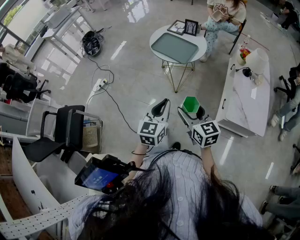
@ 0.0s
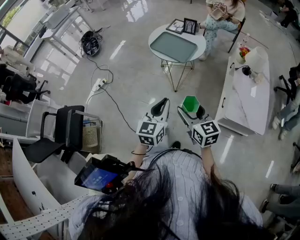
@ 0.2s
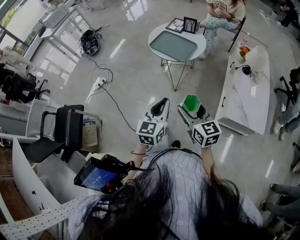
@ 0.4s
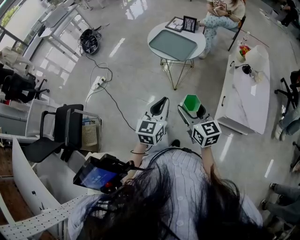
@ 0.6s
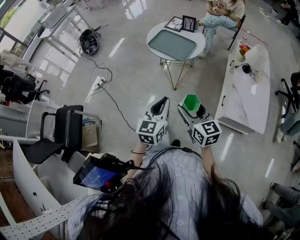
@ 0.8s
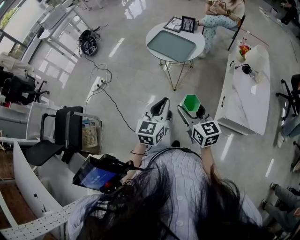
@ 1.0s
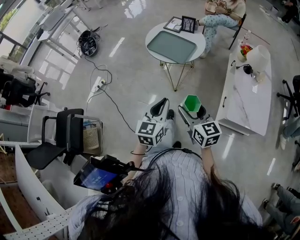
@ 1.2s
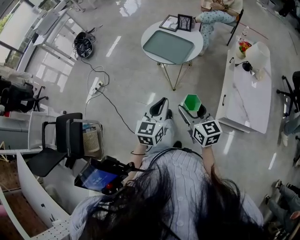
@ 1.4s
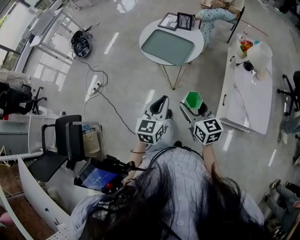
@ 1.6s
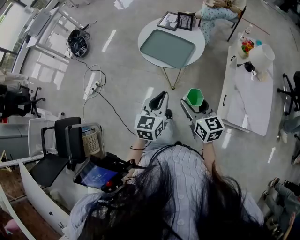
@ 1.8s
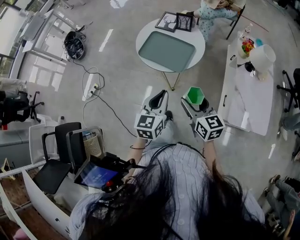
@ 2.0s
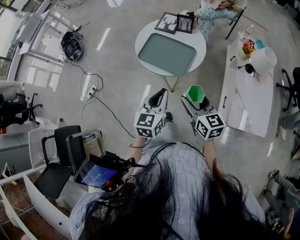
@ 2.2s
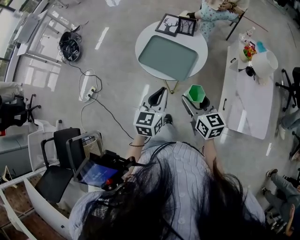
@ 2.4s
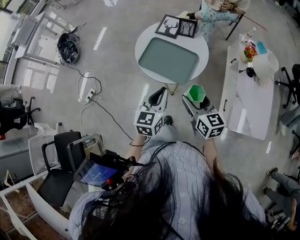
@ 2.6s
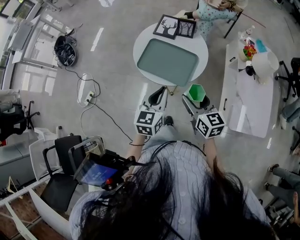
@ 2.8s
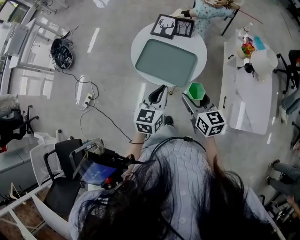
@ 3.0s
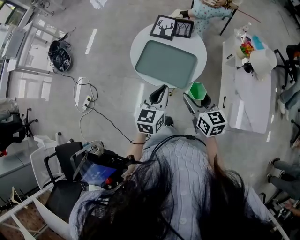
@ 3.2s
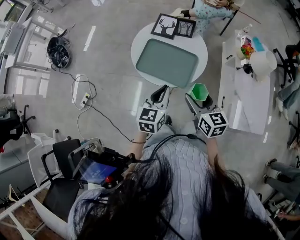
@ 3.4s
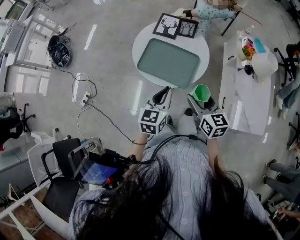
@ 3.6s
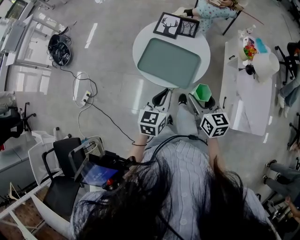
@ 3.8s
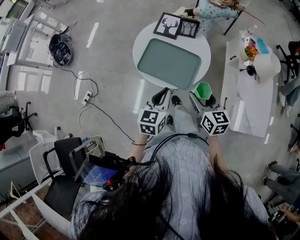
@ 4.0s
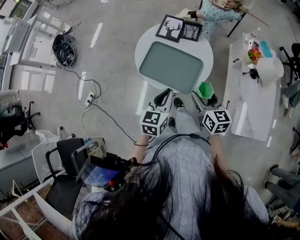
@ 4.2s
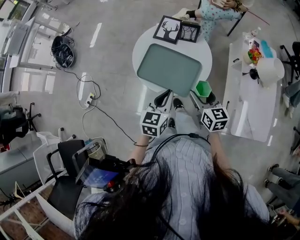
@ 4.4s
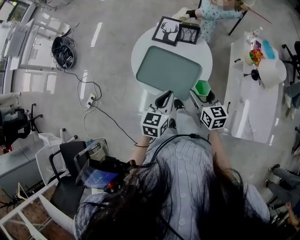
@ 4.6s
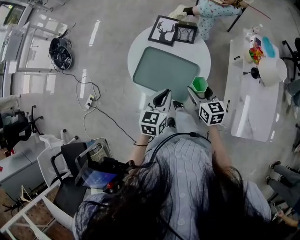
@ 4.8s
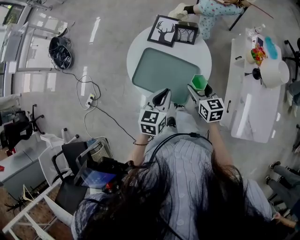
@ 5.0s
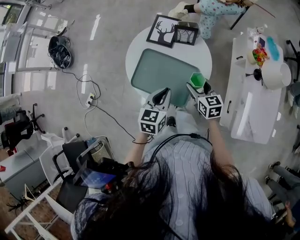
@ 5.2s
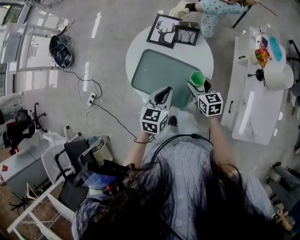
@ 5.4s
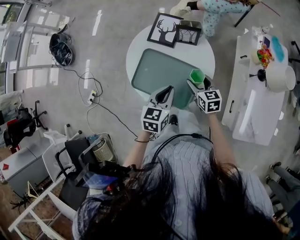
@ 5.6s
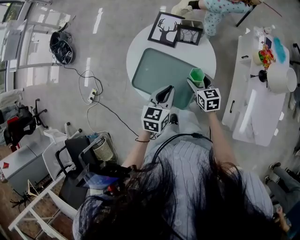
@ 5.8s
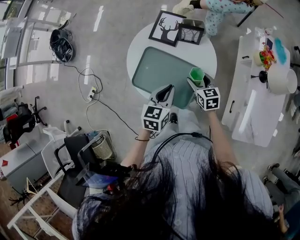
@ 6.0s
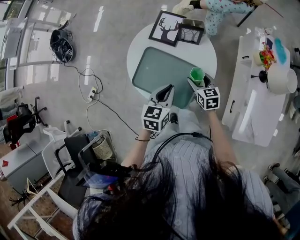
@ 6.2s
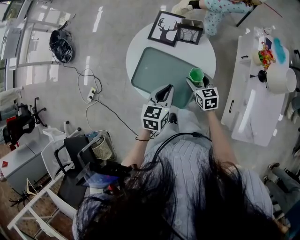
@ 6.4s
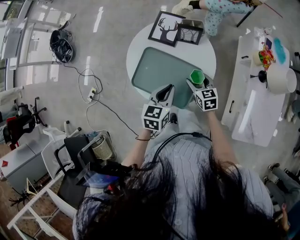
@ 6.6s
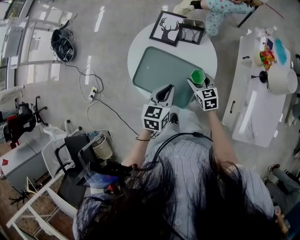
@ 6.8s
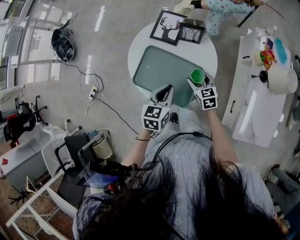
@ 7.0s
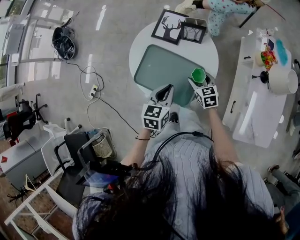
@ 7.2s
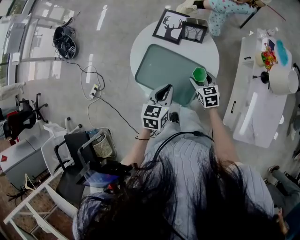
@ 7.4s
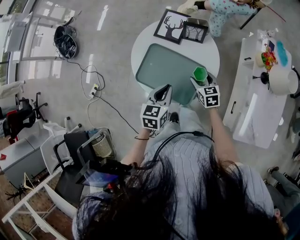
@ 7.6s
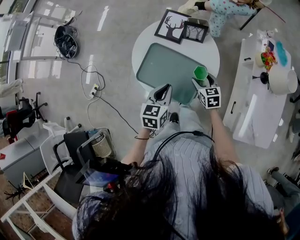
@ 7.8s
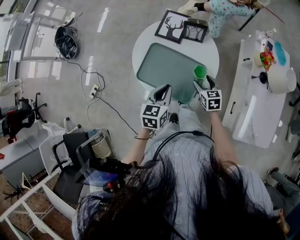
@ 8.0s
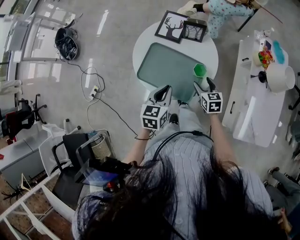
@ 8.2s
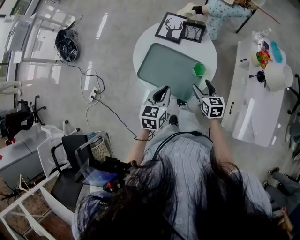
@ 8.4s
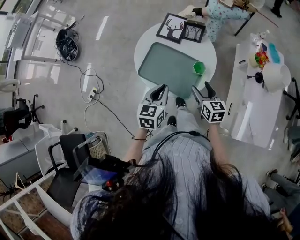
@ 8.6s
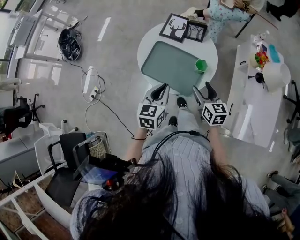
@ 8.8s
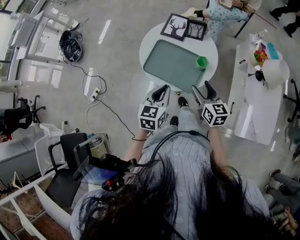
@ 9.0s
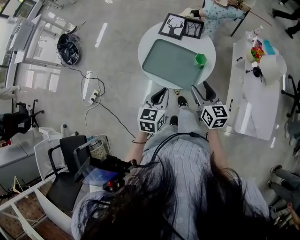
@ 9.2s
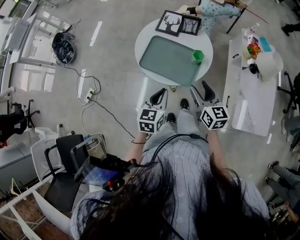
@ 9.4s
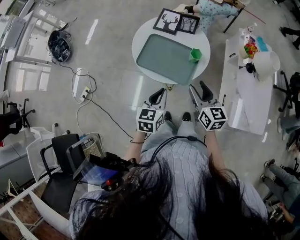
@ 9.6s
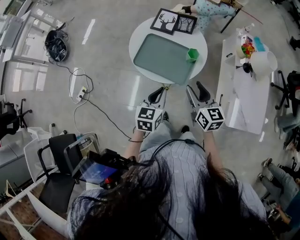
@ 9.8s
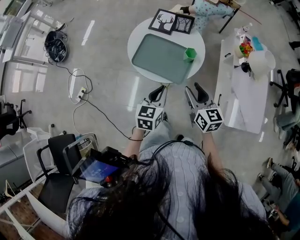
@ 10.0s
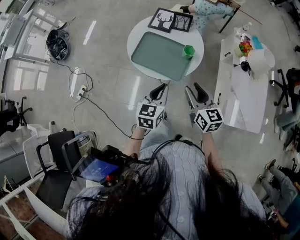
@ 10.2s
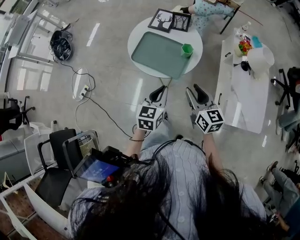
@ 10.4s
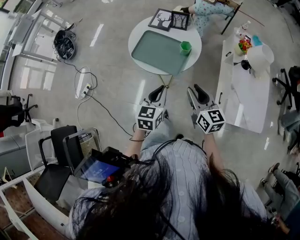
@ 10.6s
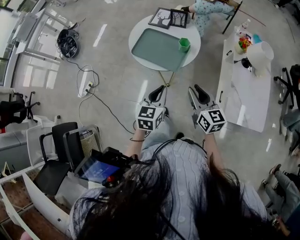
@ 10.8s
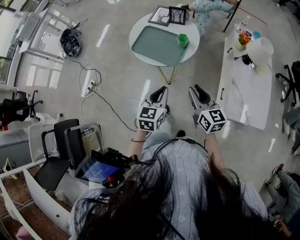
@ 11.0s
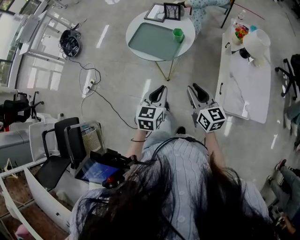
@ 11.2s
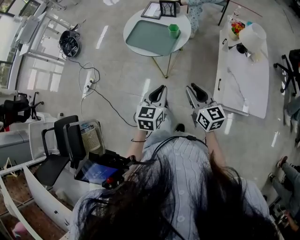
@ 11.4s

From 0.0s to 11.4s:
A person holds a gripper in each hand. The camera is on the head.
From 0.0s to 1.4s: Both grippers move forward, approximately 5 cm.
From 1.4s to 2.8s: The two grippers go approximately 25 cm forward.
From 2.8s to 4.2s: The left gripper moves roughly 5 cm. The right gripper shifts about 5 cm forward.
From 4.2s to 5.6s: The right gripper is displaced forward and downward by approximately 20 cm, while the left gripper moves forward and downward, approximately 15 cm.
From 5.6s to 7.2s: The grippers make only small movements.
From 7.2s to 8.6s: The left gripper heads backward, covering roughly 5 cm. The right gripper goes some 15 cm upward and backward.
From 8.6s to 10.0s: The left gripper travels backward by some 10 cm. Meanwhile the right gripper is displaced backward and upward by roughly 15 cm.
From 10.0s to 11.4s: The two grippers go about 20 cm backward and to the right.

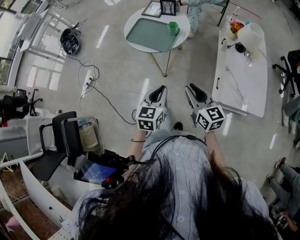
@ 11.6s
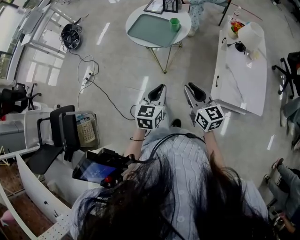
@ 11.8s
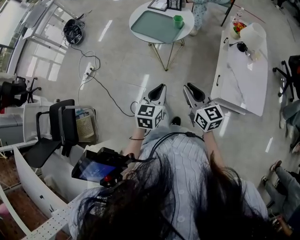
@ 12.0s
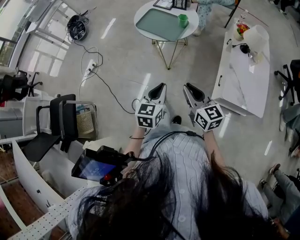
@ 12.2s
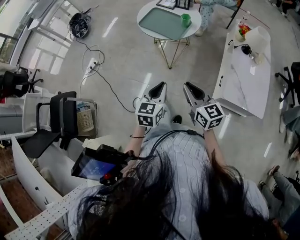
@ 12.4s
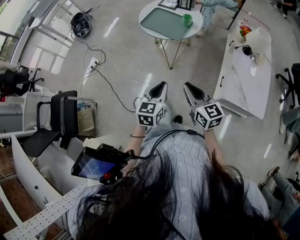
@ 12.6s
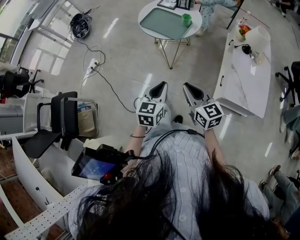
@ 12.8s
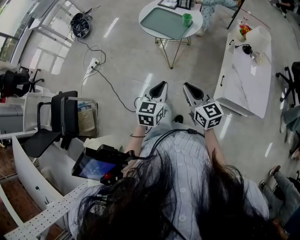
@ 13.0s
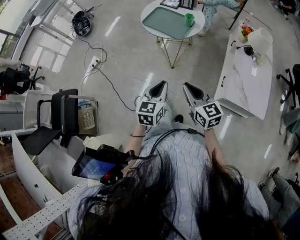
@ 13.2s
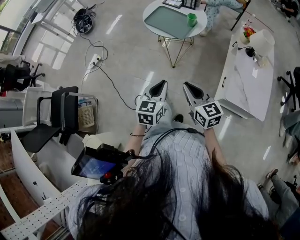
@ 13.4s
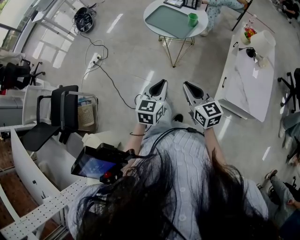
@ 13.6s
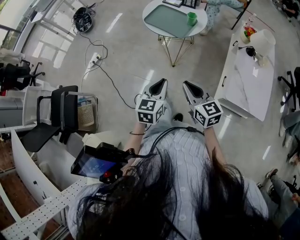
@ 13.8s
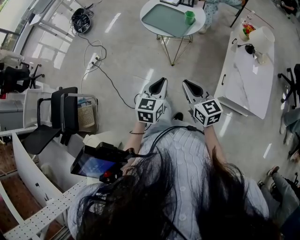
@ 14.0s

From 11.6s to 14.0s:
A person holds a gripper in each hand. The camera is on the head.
From 11.6s to 12.8s: The right gripper is displaced backward and to the left by about 10 cm, while the left gripper shifts some 10 cm backward.
From 12.8s to 14.0s: The grippers move only a little.

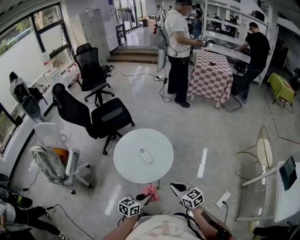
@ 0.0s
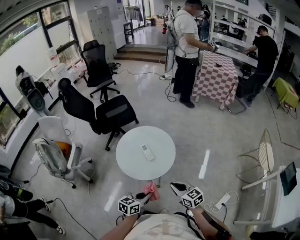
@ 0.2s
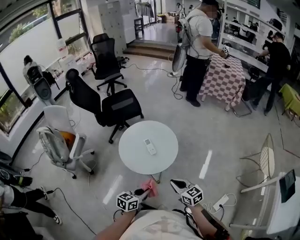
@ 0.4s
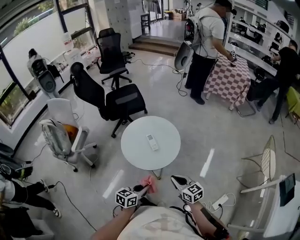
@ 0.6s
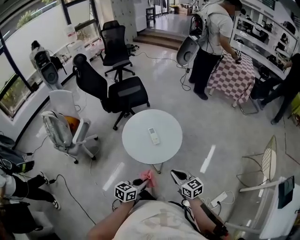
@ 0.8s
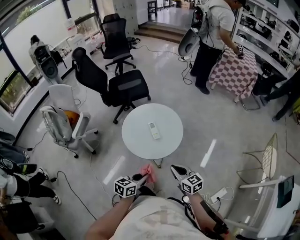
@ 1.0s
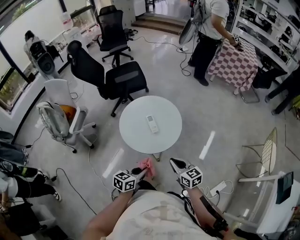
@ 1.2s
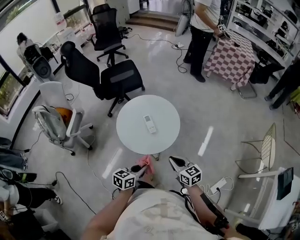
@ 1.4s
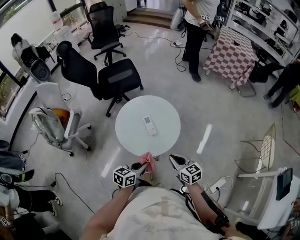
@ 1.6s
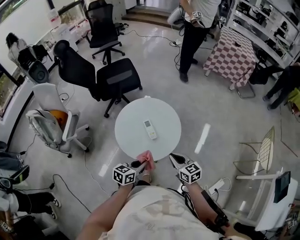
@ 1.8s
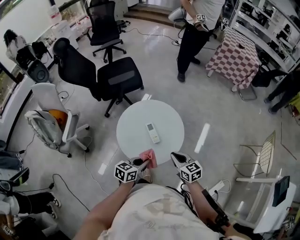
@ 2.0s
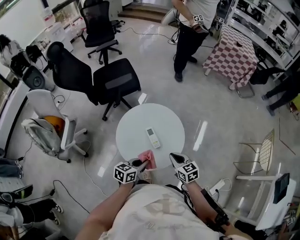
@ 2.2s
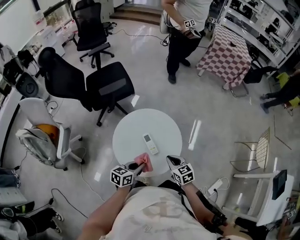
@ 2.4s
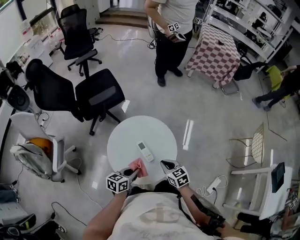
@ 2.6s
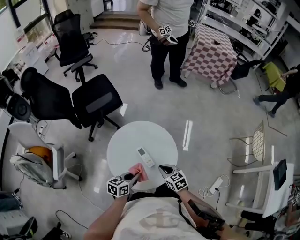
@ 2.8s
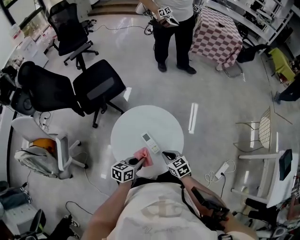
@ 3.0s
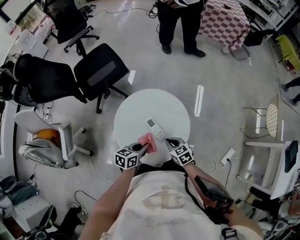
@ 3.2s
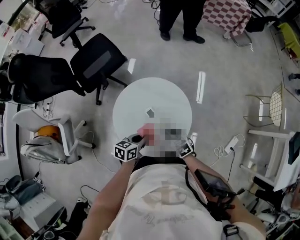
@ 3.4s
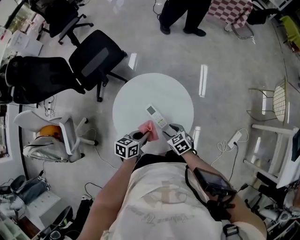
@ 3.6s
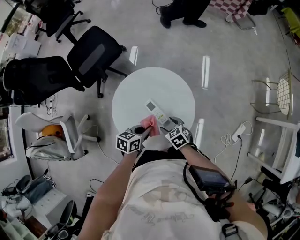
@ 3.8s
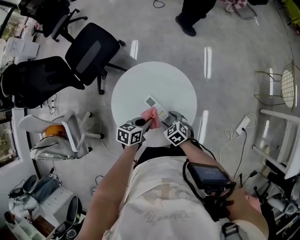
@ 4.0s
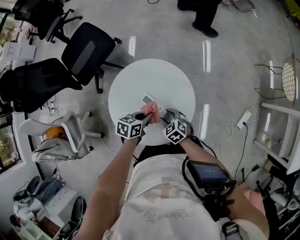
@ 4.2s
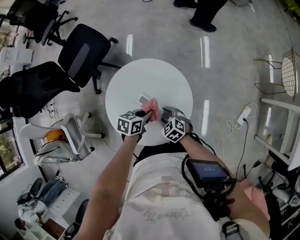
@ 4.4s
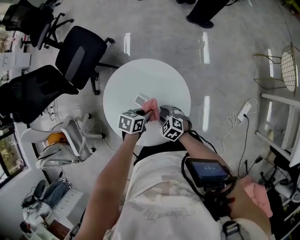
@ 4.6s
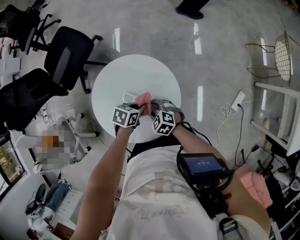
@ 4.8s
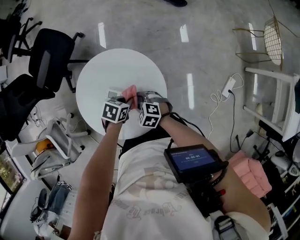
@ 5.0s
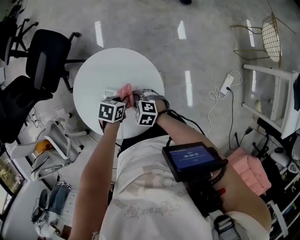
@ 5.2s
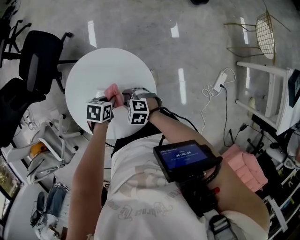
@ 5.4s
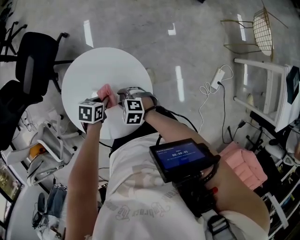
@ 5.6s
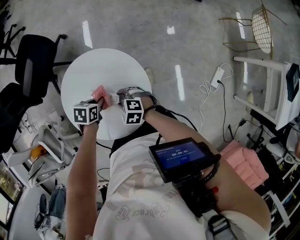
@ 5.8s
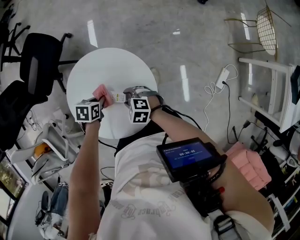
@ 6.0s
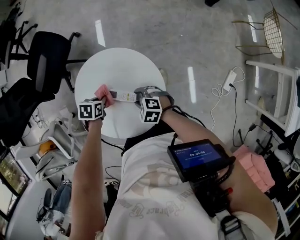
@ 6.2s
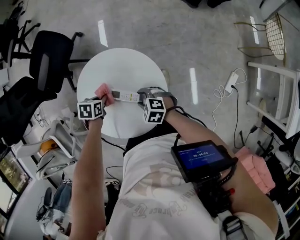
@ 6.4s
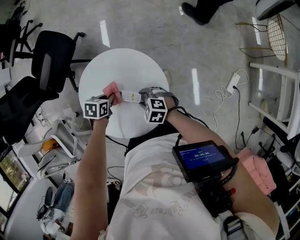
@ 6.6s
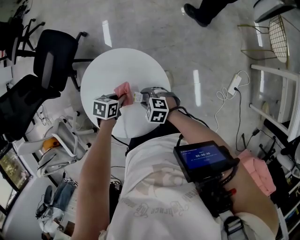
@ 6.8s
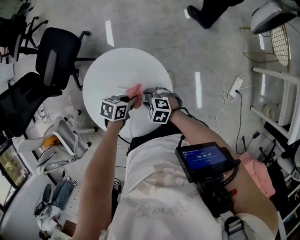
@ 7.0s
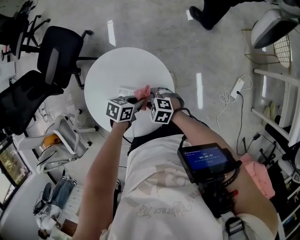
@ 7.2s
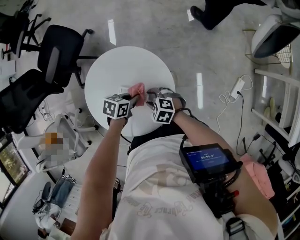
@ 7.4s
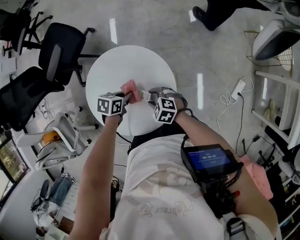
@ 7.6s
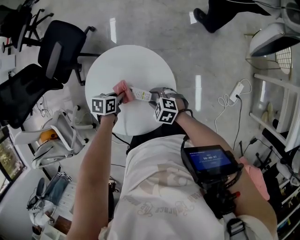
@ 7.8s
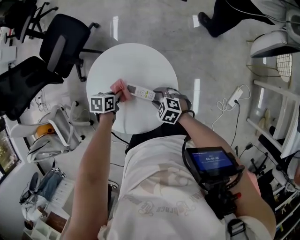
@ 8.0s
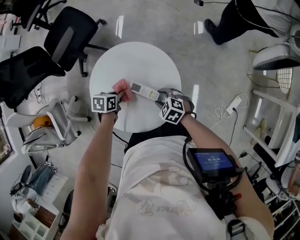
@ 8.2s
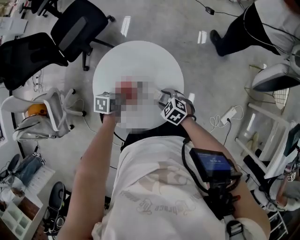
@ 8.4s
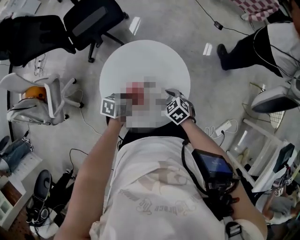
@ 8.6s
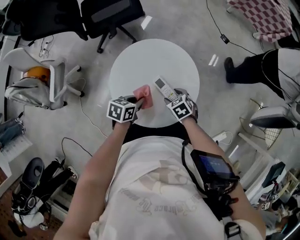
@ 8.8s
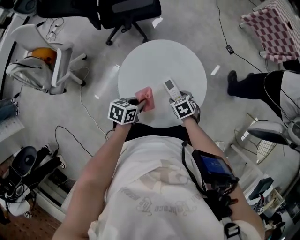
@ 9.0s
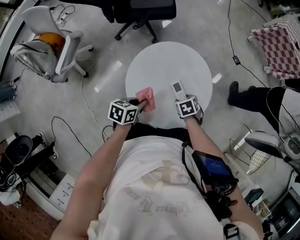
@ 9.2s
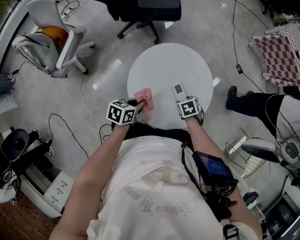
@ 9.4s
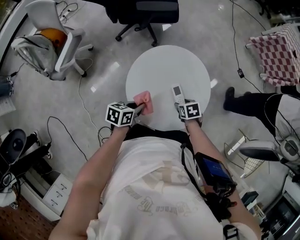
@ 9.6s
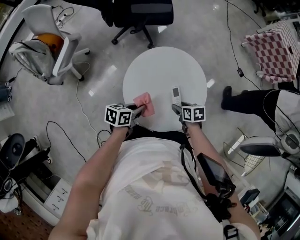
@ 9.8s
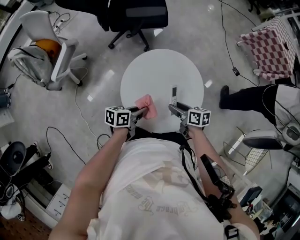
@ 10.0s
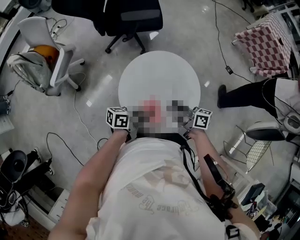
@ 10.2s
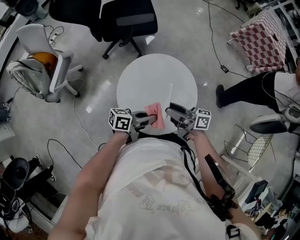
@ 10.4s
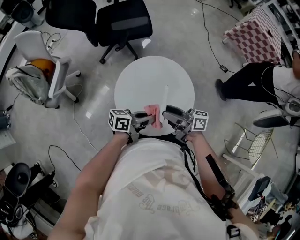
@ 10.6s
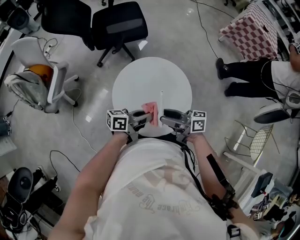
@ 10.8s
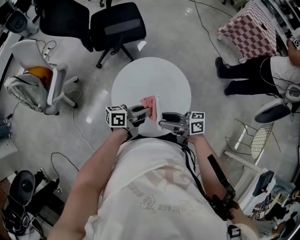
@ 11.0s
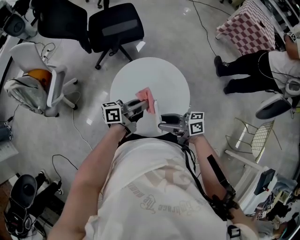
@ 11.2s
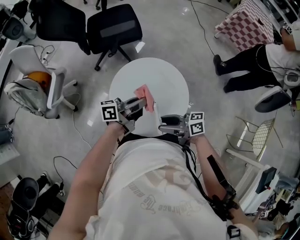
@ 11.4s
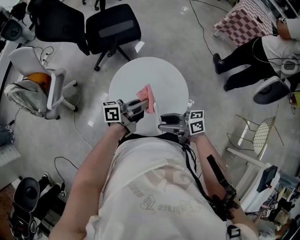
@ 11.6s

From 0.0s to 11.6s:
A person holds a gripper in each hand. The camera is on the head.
From 0.0s to 1.4s: The grippers make only small movements.
From 1.4s to 2.8s: The left gripper shifts approximately 25 cm forward and to the left. The right gripper heads forward, to the left and downward, covering some 25 cm, and rotates some 20 degrees.
From 2.8s to 4.4s: The left gripper goes some 15 cm downward, forward and to the right, and rotates approximately 30 degrees. The right gripper travels downward by about 15 cm, and opens its fingers.
From 4.4s to 5.8s: The left gripper turns by about 20 degrees.
From 5.8s to 7.2s: The left gripper ends up roughly 10 cm from where it was, and swivels approximately 20 degrees.
From 7.2s to 8.8s: The left gripper shifts by about 15 cm, and changes its angle by some 40 degrees.
From 8.8s to 10.2s: The right gripper is displaced upward by roughly 15 cm, and points its fingers roughly 50 degrees further upward; the left gripper shifts by about 10 cm, and points its fingers approximately 40 degrees further upward.
From 10.2s to 11.6s: The left gripper goes roughly 10 cm upward, and changes its angle by approximately 20 degrees. Meanwhile the right gripper moves about 10 cm.
